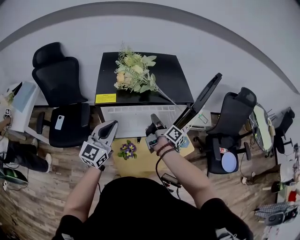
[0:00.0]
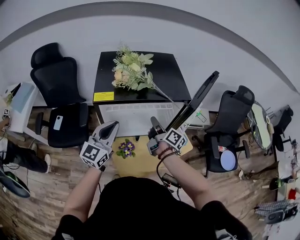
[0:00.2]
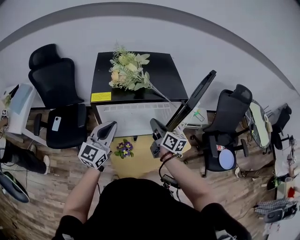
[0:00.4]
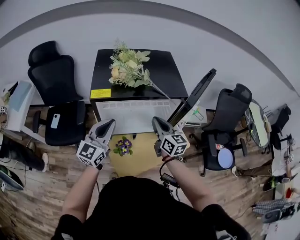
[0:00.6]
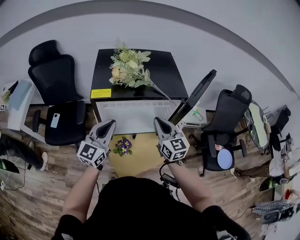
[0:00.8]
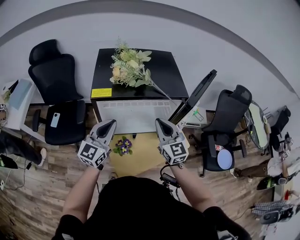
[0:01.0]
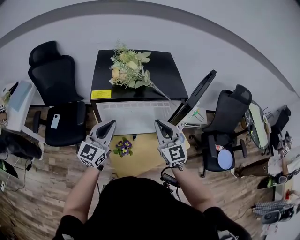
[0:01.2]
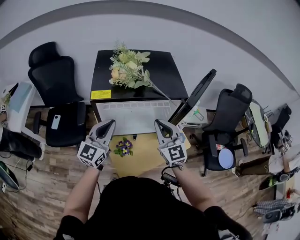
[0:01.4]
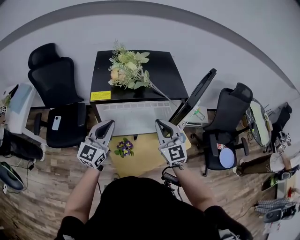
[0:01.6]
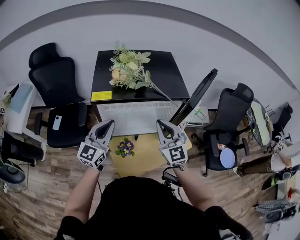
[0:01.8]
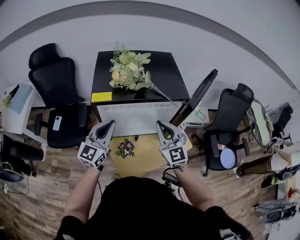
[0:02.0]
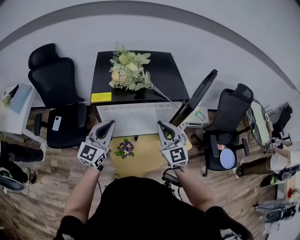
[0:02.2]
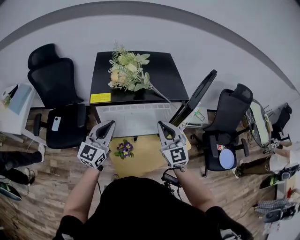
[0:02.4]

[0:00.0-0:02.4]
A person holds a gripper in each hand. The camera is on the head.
0:00.0 to 0:01.2: The right gripper shifts approximately 15 cm upward and backward, and twists about 90 degrees counterclockwise, seen from behind.
0:01.2 to 0:02.4: The two grippers keep their place.

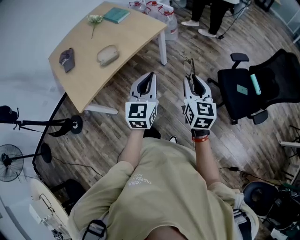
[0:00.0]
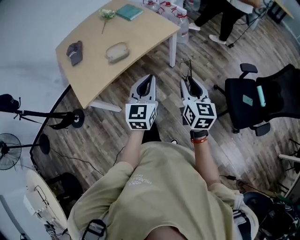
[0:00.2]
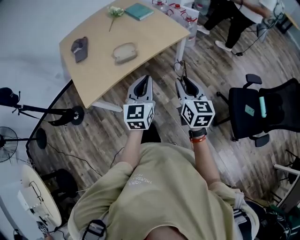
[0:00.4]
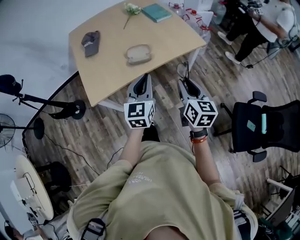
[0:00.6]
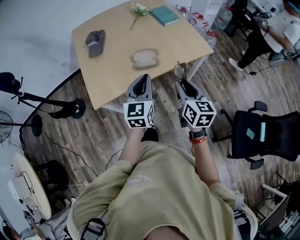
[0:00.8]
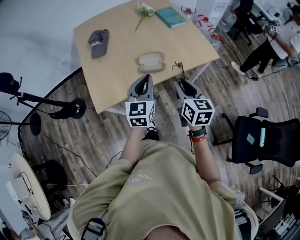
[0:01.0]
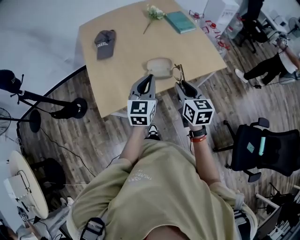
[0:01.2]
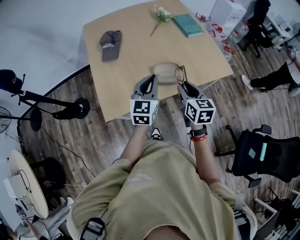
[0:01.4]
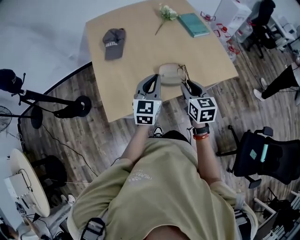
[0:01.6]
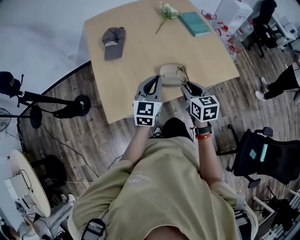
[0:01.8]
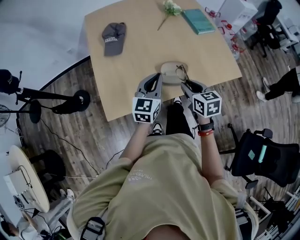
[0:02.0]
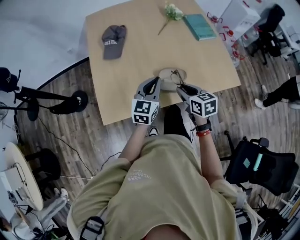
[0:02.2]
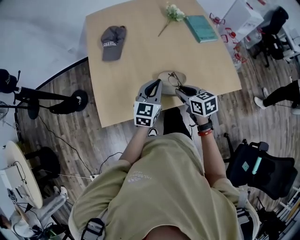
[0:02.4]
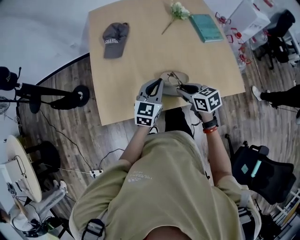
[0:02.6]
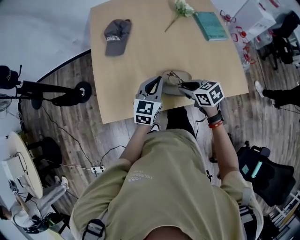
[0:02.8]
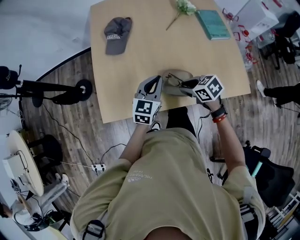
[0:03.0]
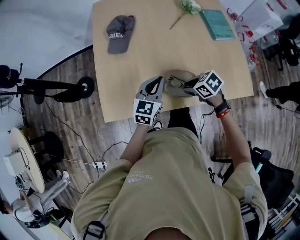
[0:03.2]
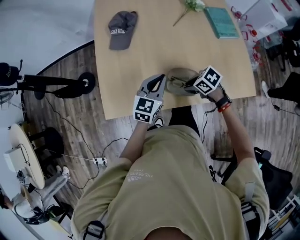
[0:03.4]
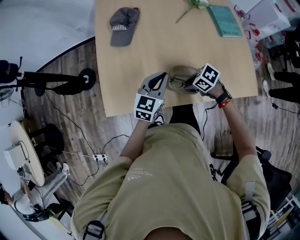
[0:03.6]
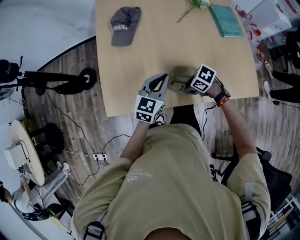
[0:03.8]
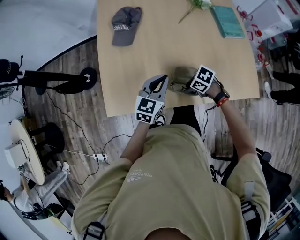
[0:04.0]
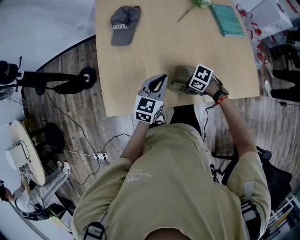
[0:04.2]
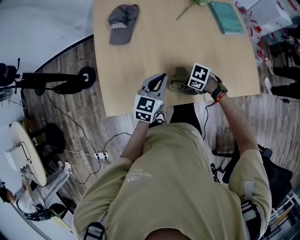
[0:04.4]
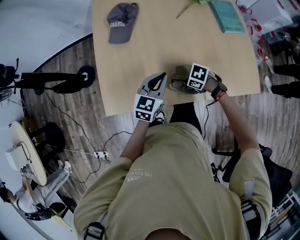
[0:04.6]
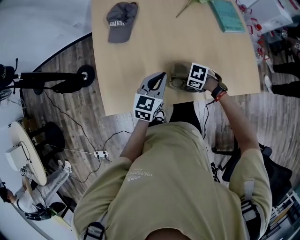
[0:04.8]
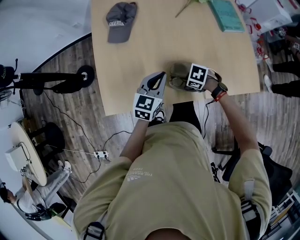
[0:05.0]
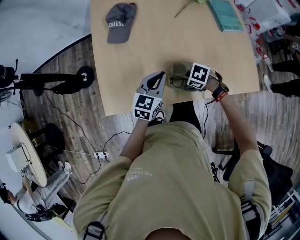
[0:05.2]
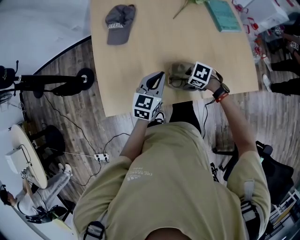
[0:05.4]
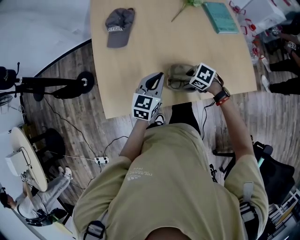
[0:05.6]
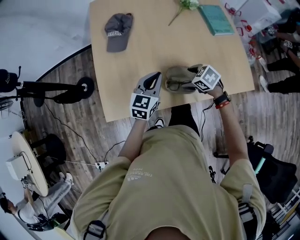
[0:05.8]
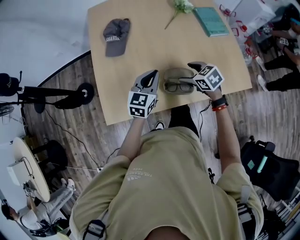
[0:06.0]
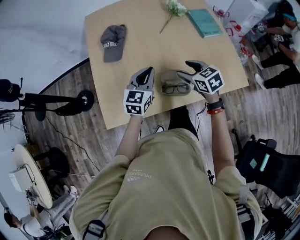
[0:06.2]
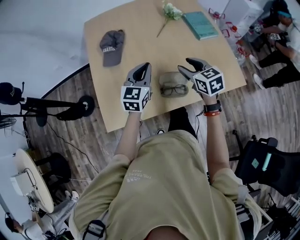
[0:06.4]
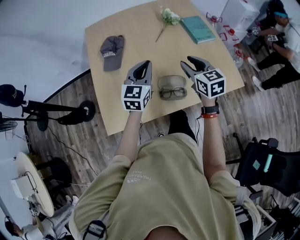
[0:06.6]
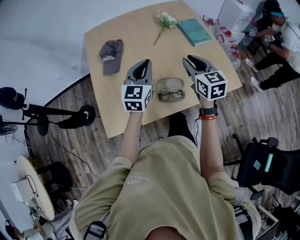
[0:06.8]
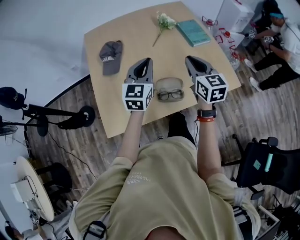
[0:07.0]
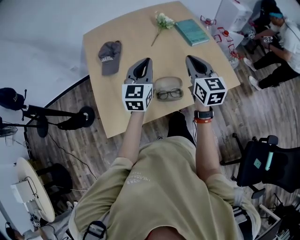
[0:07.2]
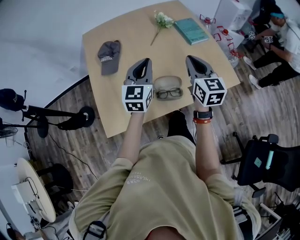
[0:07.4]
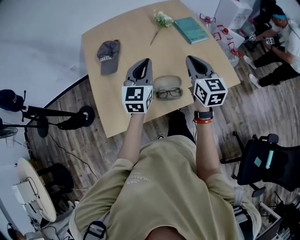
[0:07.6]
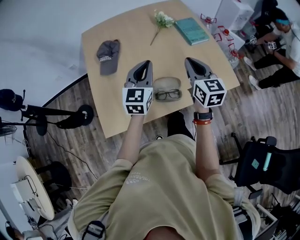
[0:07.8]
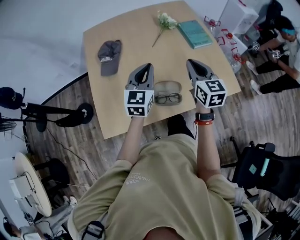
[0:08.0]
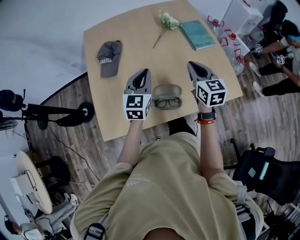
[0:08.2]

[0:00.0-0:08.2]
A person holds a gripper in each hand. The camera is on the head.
0:00.0 to 0:01.6: Both grippers are carried roughly 60 cm. The left gripper turns by some 20 degrees. The right gripper changes its angle by some 40 degrees.
0:01.6 to 0:03.2: The left gripper changes place by roughly 15 cm. The right gripper moves downward, roughly 15 cm, and turns by roughly 70 degrees.
0:03.2 to 0:05.0: The right gripper is displaced downward by approximately 10 cm, and changes its angle by some 30 degrees.
0:05.0 to 0:06.6: The right gripper is displaced upward by about 30 cm, tilts its fingers approximately 40 degrees upward, and opens and closes again. The left gripper heads upward, covering approximately 15 cm.
0:06.6 to 0:08.2: The right gripper moves to the right and forward, approximately 10 cm, and closes; the left gripper moves approximately 5 cm.

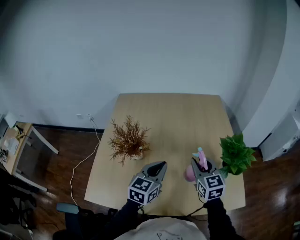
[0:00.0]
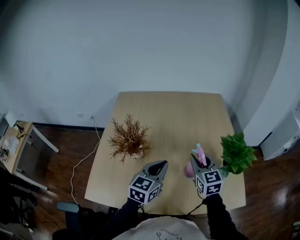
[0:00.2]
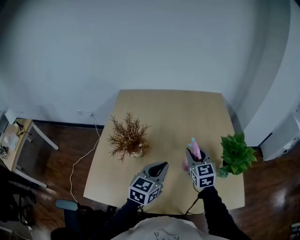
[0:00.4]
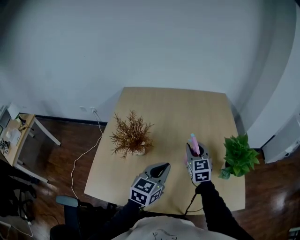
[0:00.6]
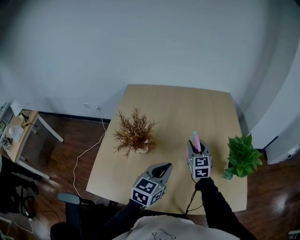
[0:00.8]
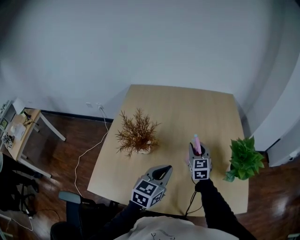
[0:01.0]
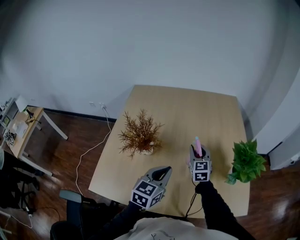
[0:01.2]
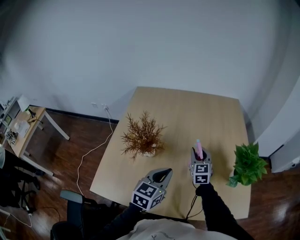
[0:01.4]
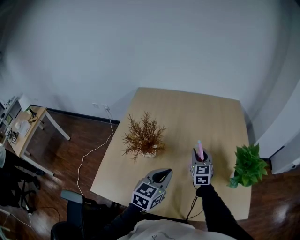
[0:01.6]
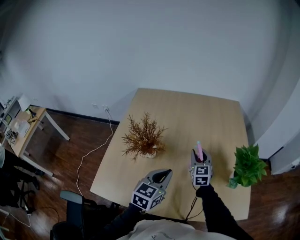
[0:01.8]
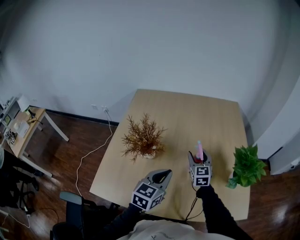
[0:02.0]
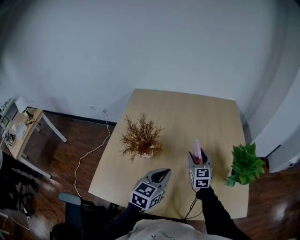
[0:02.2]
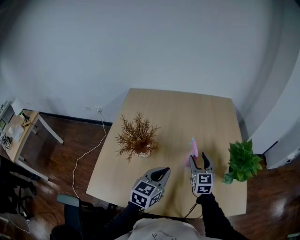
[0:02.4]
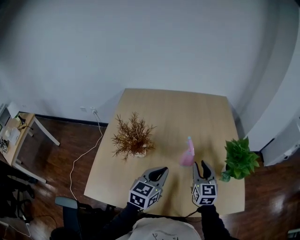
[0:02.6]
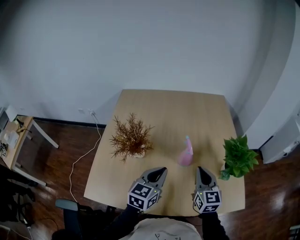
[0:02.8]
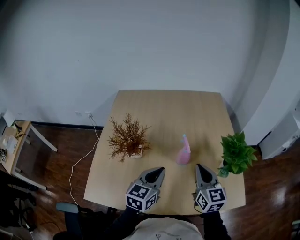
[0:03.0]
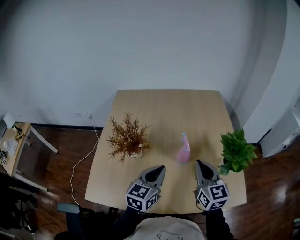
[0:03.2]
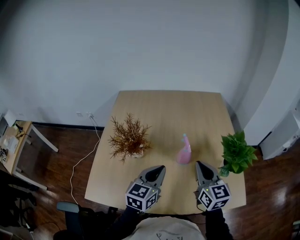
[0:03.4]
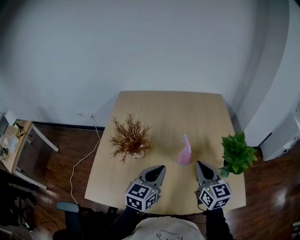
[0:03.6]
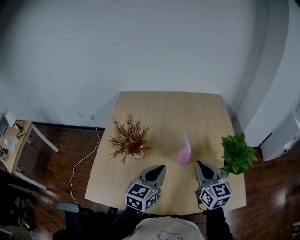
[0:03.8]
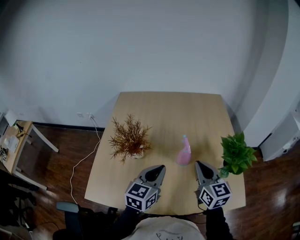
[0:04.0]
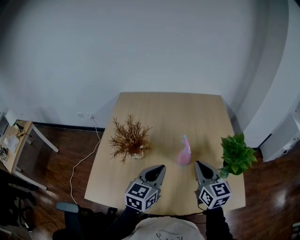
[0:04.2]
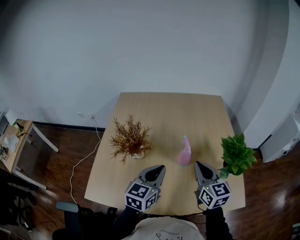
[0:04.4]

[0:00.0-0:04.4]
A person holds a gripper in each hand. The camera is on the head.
0:00.0 to 0:01.4: The right gripper is displaced forward, downward and to the left by some 15 cm.
0:01.4 to 0:03.0: The right gripper goes approximately 20 cm backward, upward and to the right, and closes up.
0:03.0 to 0:04.4: The grippers move only a little.

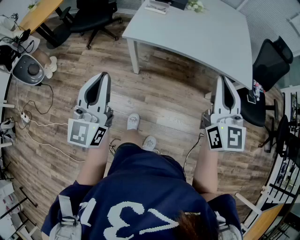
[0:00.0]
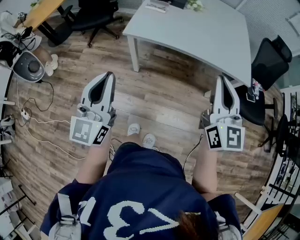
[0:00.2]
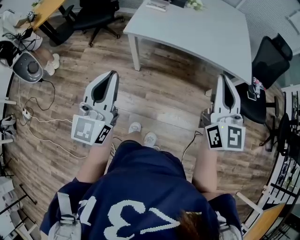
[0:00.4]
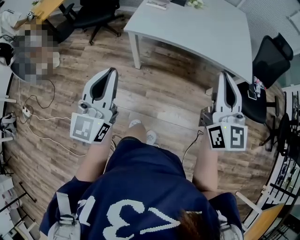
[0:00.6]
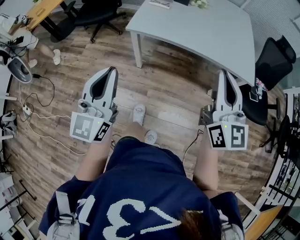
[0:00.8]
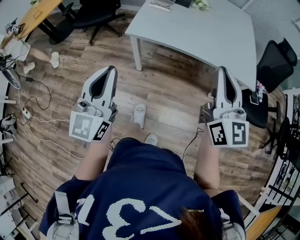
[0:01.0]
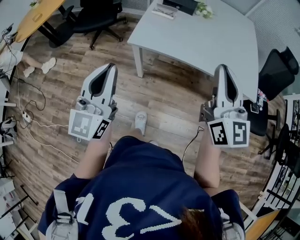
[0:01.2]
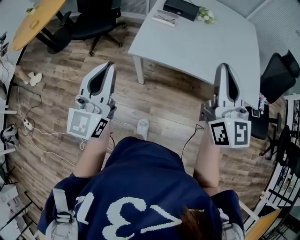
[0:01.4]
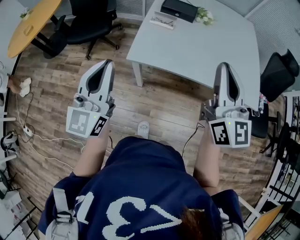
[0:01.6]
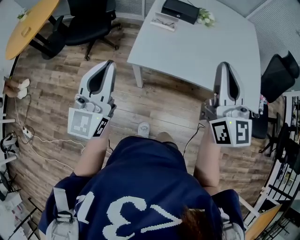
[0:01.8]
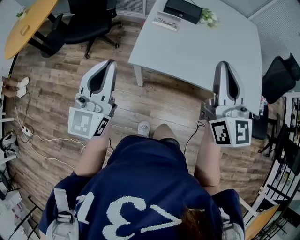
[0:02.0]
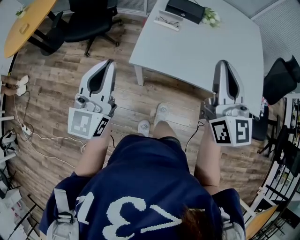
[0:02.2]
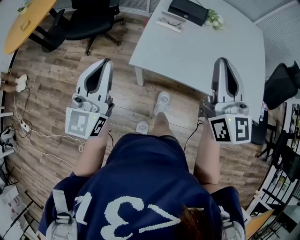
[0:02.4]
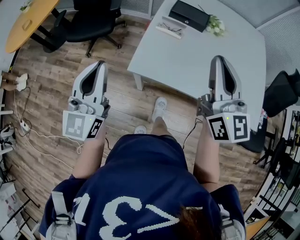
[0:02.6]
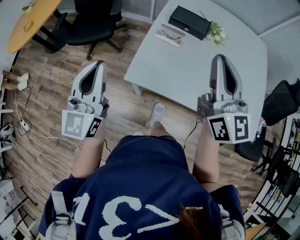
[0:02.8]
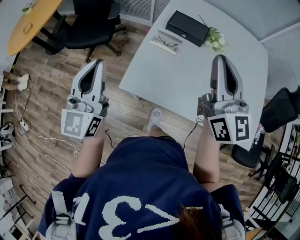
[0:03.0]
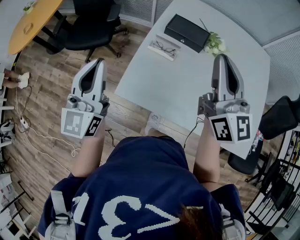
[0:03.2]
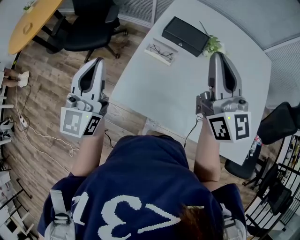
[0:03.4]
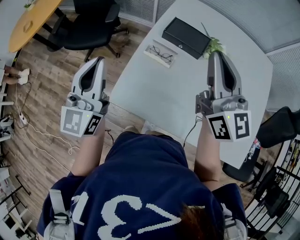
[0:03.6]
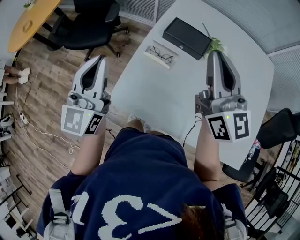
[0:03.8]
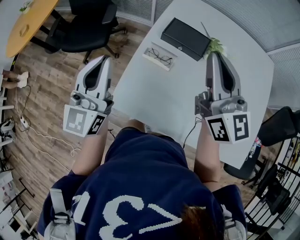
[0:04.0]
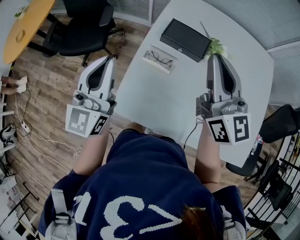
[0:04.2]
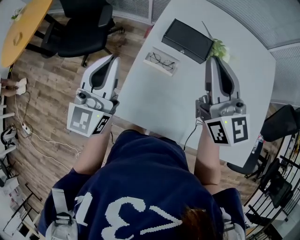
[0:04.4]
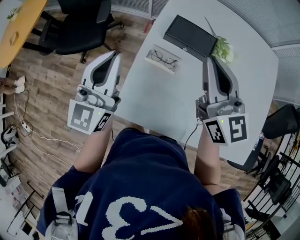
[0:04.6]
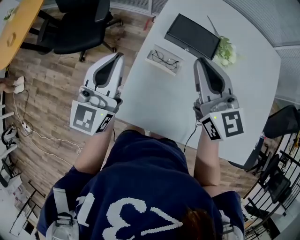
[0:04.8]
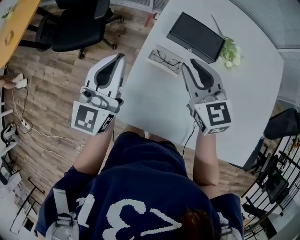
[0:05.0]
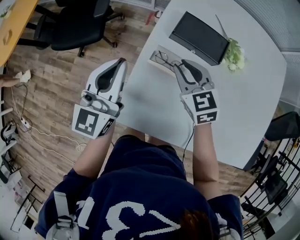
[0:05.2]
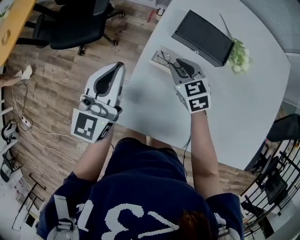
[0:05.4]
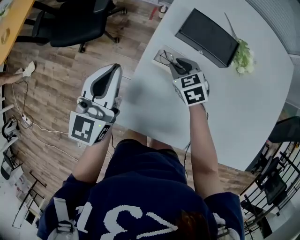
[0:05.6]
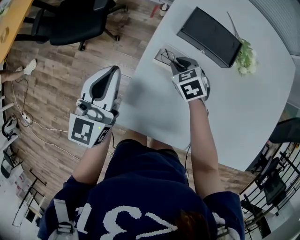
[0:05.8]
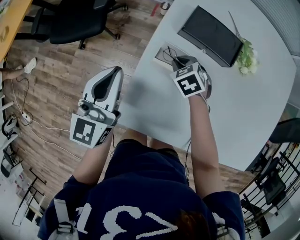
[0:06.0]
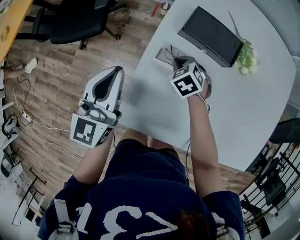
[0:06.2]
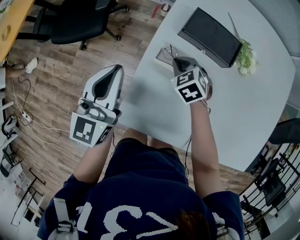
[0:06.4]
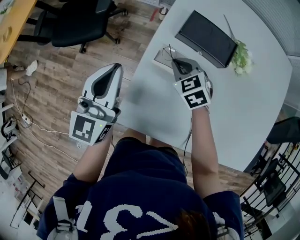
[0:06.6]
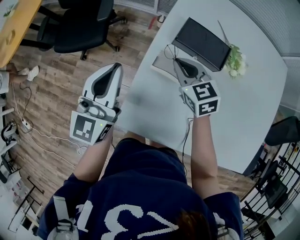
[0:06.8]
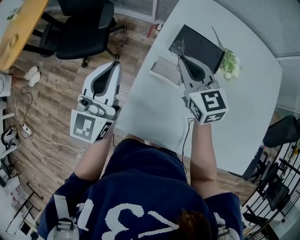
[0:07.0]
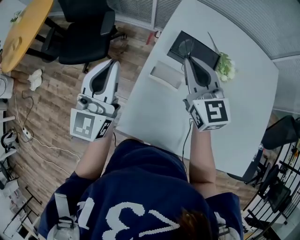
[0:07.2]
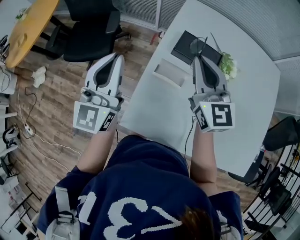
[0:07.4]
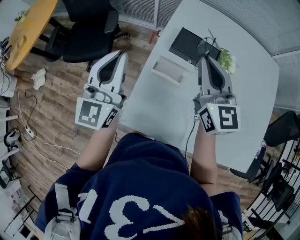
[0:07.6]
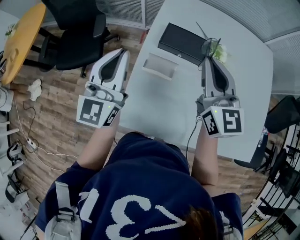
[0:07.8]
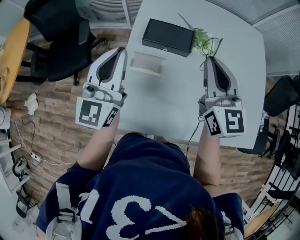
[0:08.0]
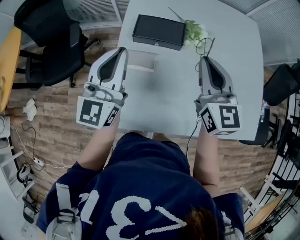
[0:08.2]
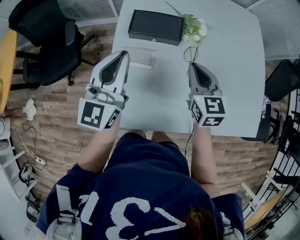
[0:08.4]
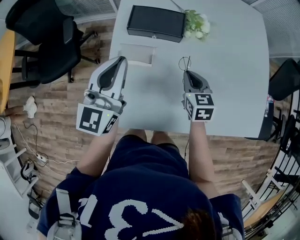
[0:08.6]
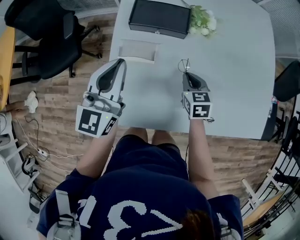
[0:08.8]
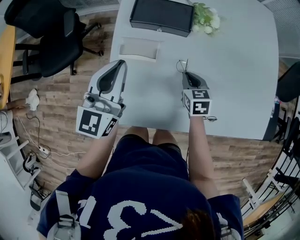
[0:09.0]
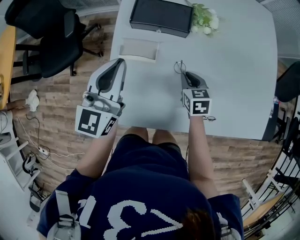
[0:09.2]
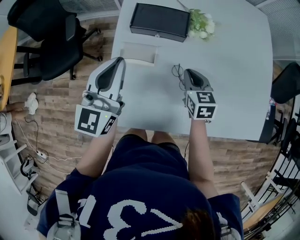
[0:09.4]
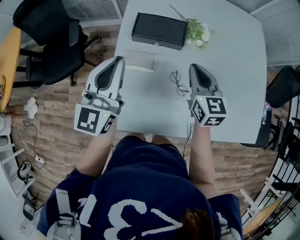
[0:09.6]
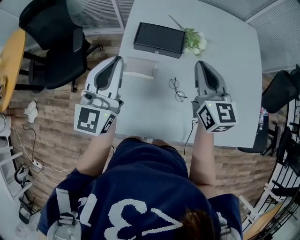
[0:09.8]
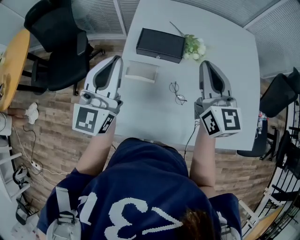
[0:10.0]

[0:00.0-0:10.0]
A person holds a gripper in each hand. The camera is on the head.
0:00.0 to 0:01.4: The right gripper moves forward and to the left, roughly 15 cm. Meanwhile the left gripper heads forward, covering some 15 cm.
0:01.4 to 0:02.8: The grippers both shift forward by roughly 20 cm.
0:02.8 to 0:04.2: The right gripper shifts about 20 cm forward. The left gripper moves forward and to the right, about 20 cm.
0:04.2 to 0:05.8: The right gripper shifts about 40 cm downward, and tilts its fingers approximately 60 degrees downward, while the left gripper is displaced downward and forward by some 15 cm.
0:05.8 to 0:07.2: The right gripper goes approximately 30 cm upward, and angles its fingers upward, by about 50 degrees; the left gripper travels upward by roughly 10 cm.
0:07.2 to 0:08.6: The left gripper heads to the right and downward, covering approximately 15 cm, and rotates roughly 20 degrees, while the right gripper is displaced downward, to the right and backward by some 30 cm, and turns by roughly 40 degrees.
0:08.6 to 0:10.0: The right gripper goes approximately 25 cm upward, and angles its fingers upward, by about 40 degrees, while the left gripper heads upward, covering approximately 10 cm.
